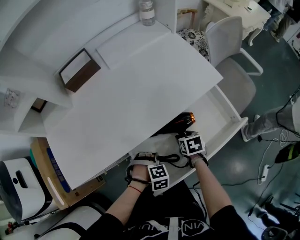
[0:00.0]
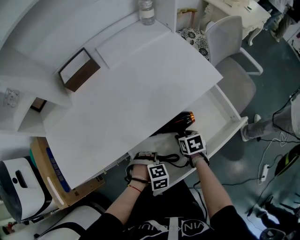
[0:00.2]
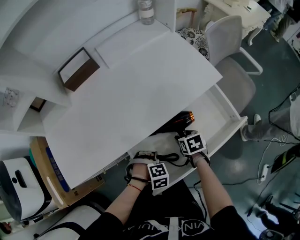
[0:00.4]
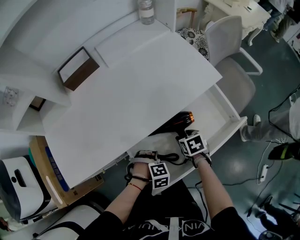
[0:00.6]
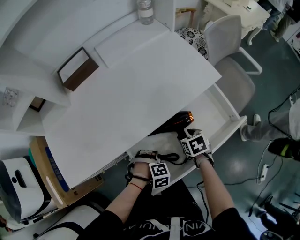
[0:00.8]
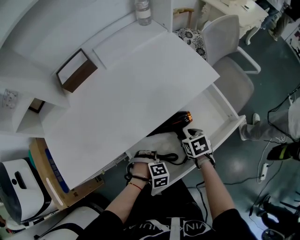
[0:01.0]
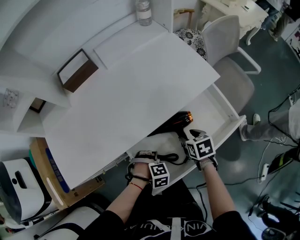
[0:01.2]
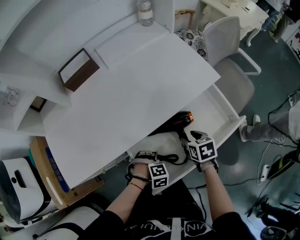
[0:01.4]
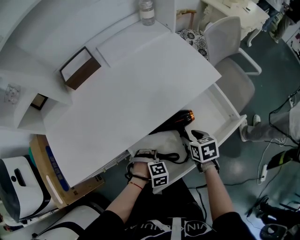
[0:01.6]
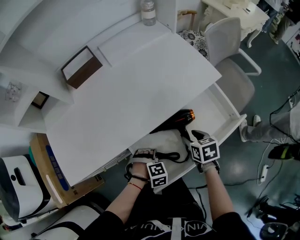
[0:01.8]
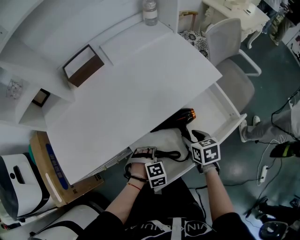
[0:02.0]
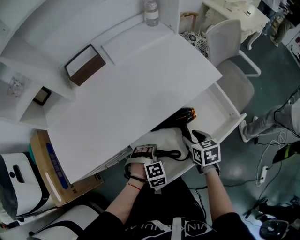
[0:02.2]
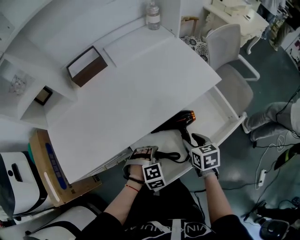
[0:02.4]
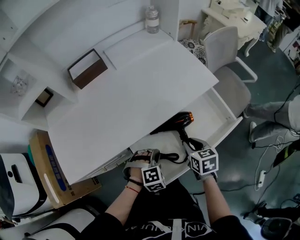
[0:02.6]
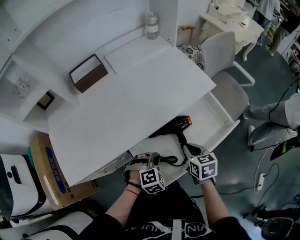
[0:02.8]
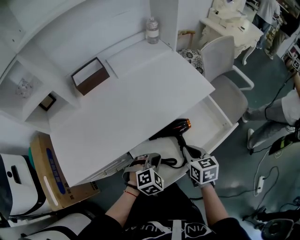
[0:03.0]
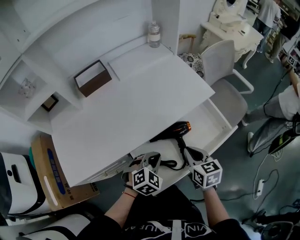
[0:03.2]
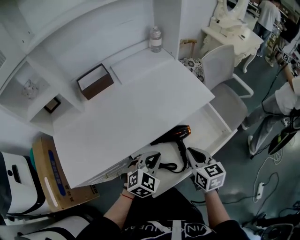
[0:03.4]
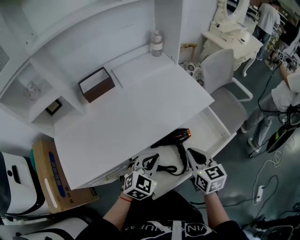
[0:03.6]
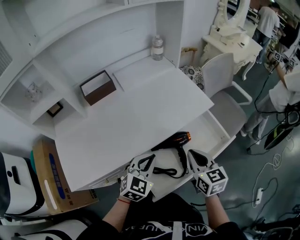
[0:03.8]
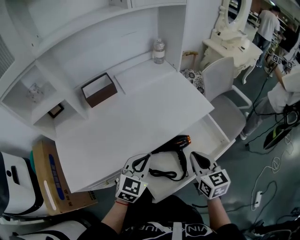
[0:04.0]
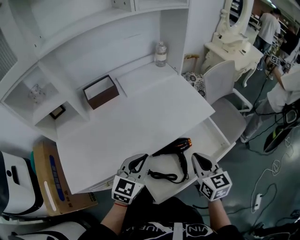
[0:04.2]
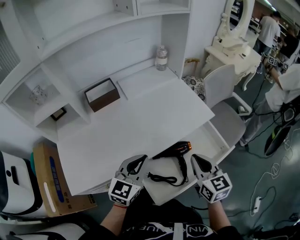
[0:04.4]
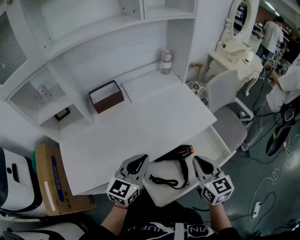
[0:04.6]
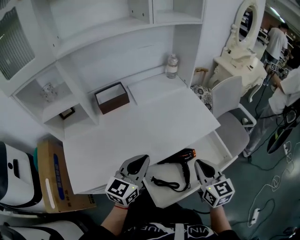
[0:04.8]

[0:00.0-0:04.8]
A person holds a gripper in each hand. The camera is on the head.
0:00.0 to 0:01.6: The right gripper is displaced upward by roughly 5 cm.
0:01.6 to 0:03.2: Both grippers travel together upward, approximately 15 cm. The right gripper turns by about 20 degrees, and closes its fingers; the left gripper tips its fingers upward by about 40 degrees, and closes its fingers.
0:03.2 to 0:04.8: The right gripper shifts some 15 cm upward; the left gripper heads upward and to the left, covering some 20 cm, and angles its fingers upward, by some 40 degrees.

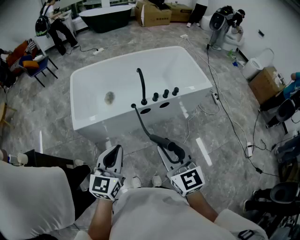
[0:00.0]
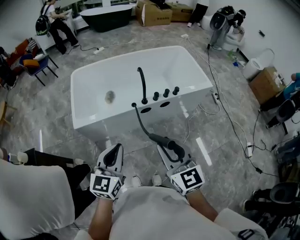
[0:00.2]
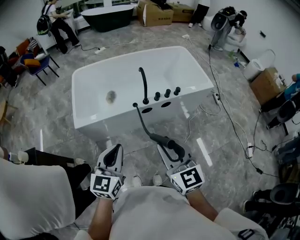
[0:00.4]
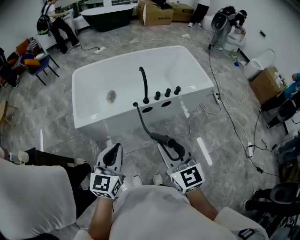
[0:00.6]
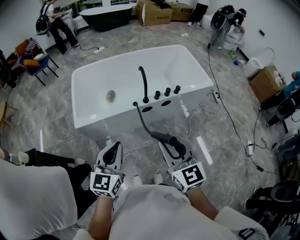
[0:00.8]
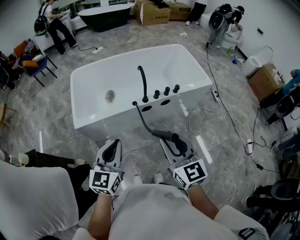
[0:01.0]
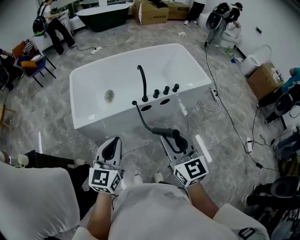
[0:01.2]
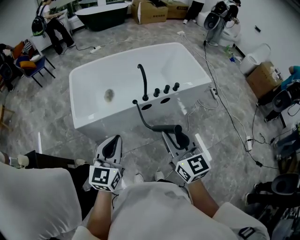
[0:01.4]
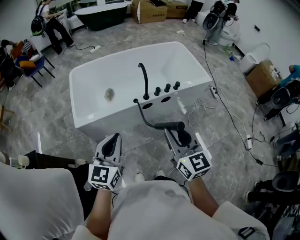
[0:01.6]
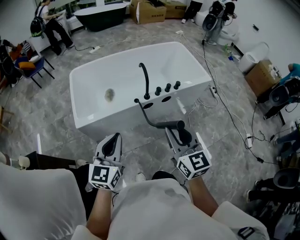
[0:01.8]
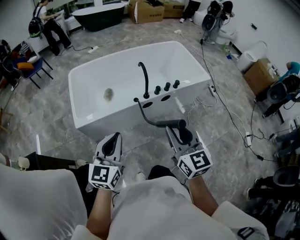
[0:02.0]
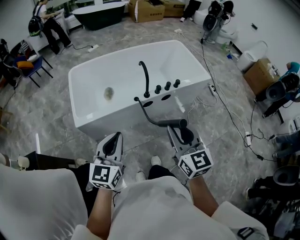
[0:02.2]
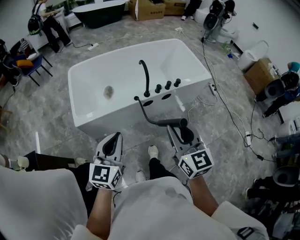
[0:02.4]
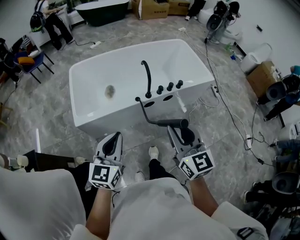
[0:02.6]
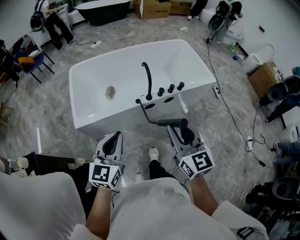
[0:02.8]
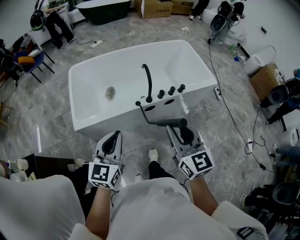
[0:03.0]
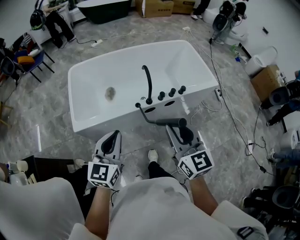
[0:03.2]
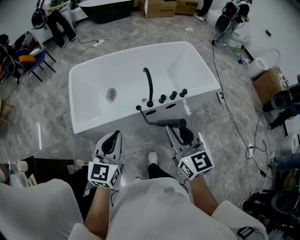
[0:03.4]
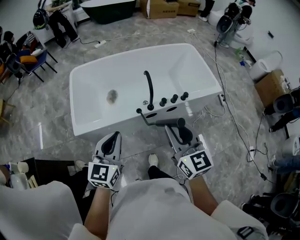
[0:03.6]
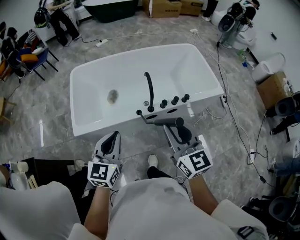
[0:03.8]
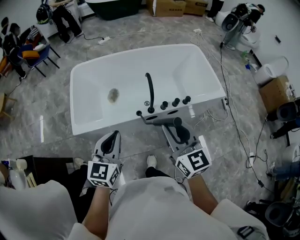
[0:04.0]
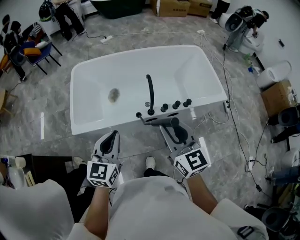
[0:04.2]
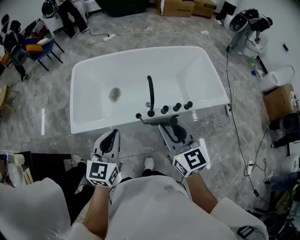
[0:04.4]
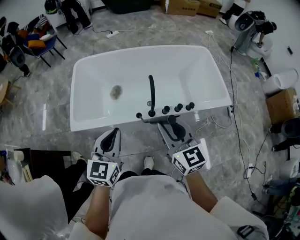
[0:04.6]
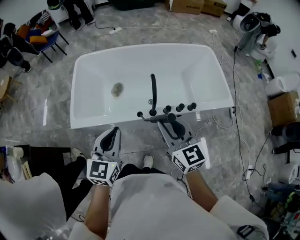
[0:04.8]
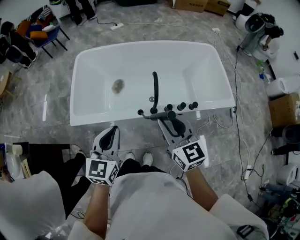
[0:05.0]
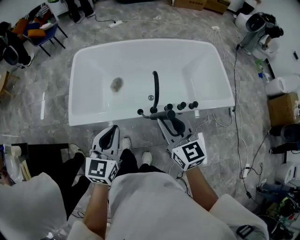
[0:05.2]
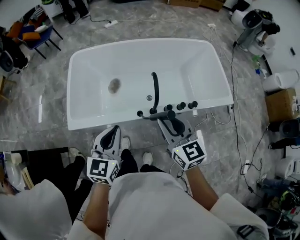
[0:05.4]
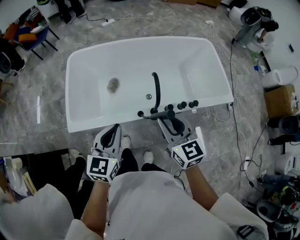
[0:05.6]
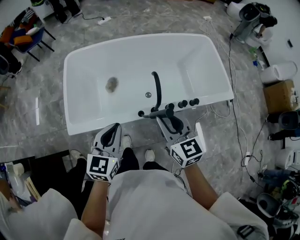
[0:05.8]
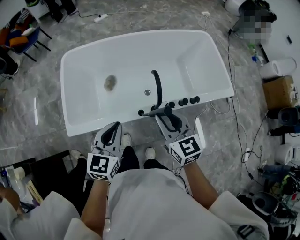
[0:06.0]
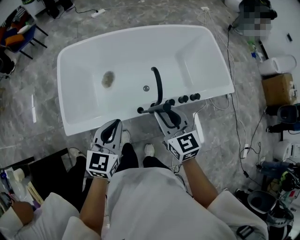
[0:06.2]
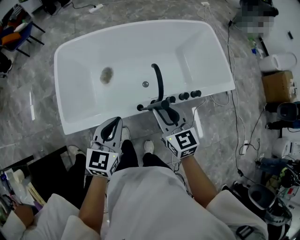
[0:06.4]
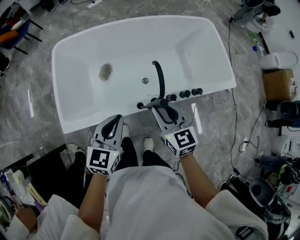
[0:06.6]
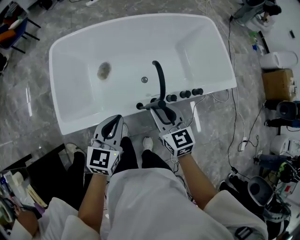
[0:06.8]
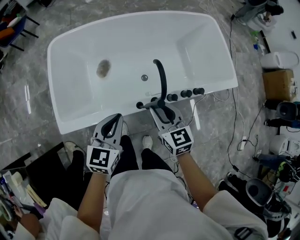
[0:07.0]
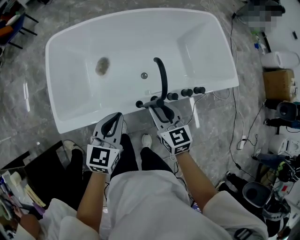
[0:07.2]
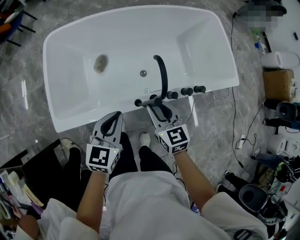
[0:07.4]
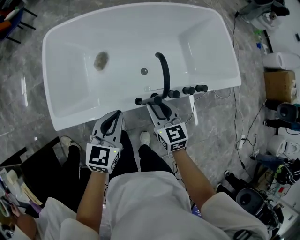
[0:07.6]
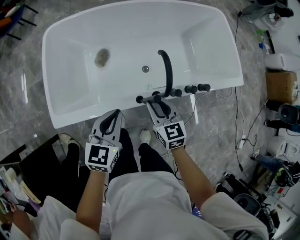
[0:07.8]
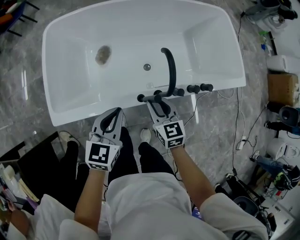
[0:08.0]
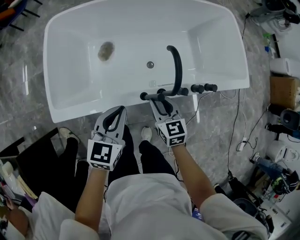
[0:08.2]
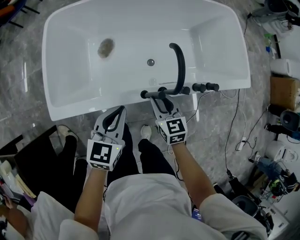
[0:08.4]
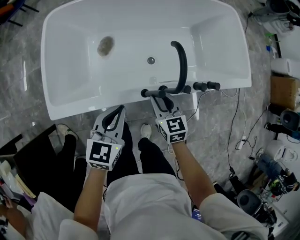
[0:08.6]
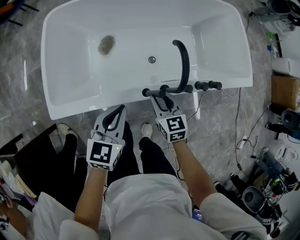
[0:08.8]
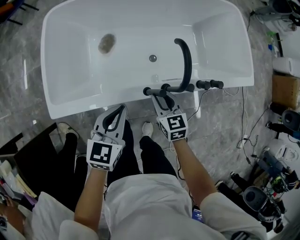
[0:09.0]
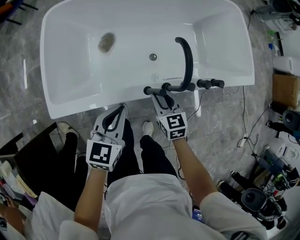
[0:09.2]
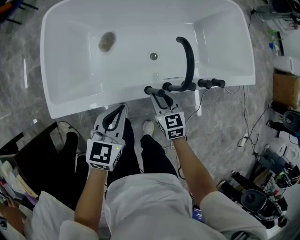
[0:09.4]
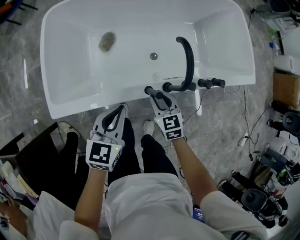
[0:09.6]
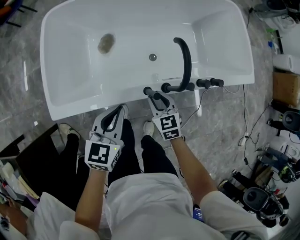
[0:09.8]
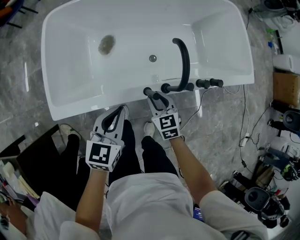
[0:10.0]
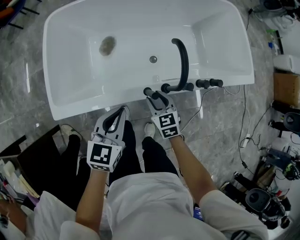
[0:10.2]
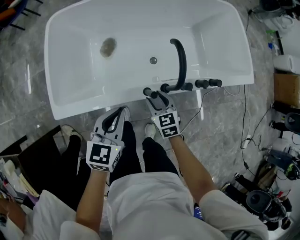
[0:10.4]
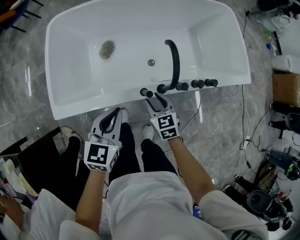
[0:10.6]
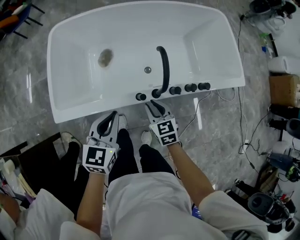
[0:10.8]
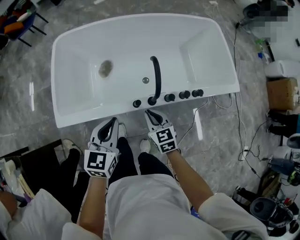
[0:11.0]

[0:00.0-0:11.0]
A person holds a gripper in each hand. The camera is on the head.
0:00.0 to 0:01.6: The left gripper ends up roughly 5 cm from where it was.
0:01.6 to 0:03.2: Both grippers move forward, about 10 cm.
0:03.2 to 0:04.8: The right gripper travels forward by approximately 15 cm. Meanwhile the left gripper goes about 15 cm forward and to the right.
0:04.8 to 0:06.2: The two grippers go roughly 15 cm forward and downward.
0:06.2 to 0:07.8: The left gripper moves downward, approximately 10 cm. Meanwhile the right gripper moves downward, roughly 20 cm.
0:07.8 to 0:09.4: The left gripper moves downward, about 5 cm. Meanwhile the right gripper heads downward, covering some 10 cm.
0:09.4 to 0:11.0: The two grippers go about 10 cm upward.

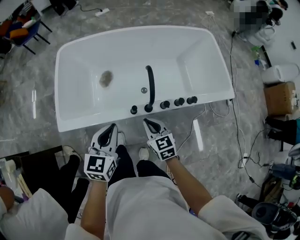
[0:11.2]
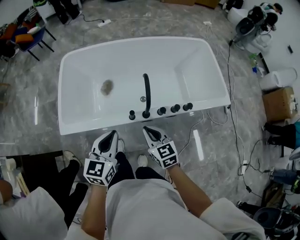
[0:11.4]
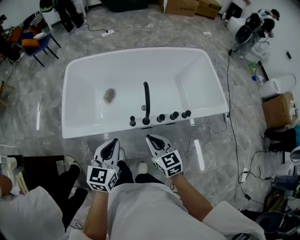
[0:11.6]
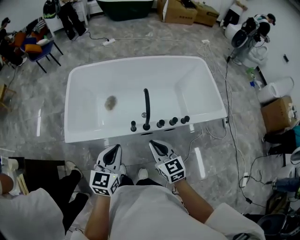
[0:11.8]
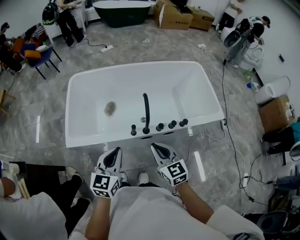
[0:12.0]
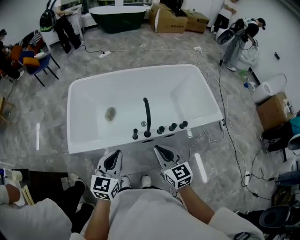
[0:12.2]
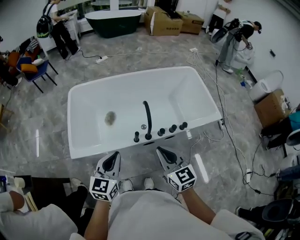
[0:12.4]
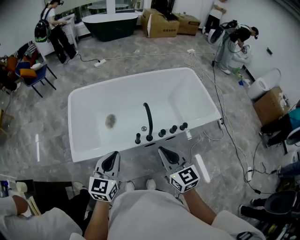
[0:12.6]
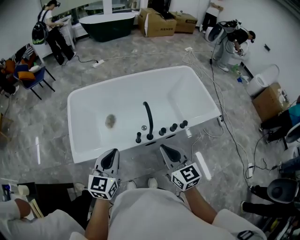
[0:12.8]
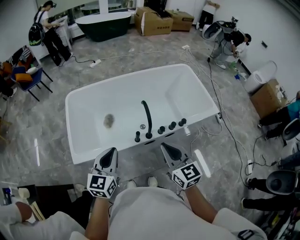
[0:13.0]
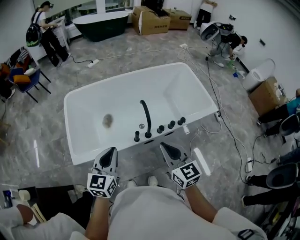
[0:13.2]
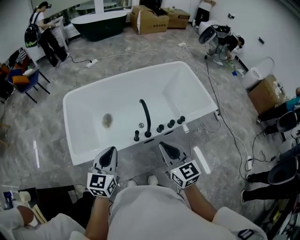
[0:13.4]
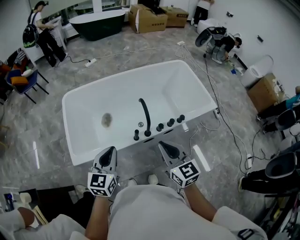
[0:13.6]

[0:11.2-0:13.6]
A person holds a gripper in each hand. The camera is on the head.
0:11.2 to 0:12.4: The left gripper travels upward and backward by roughly 10 cm, while the right gripper moves upward and backward, some 25 cm.
0:12.4 to 0:13.6: There are only small adjustments of the grippers.

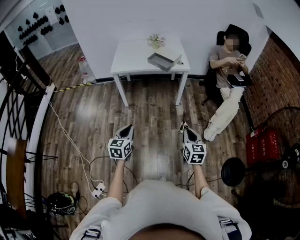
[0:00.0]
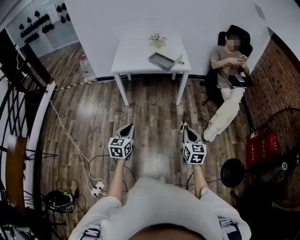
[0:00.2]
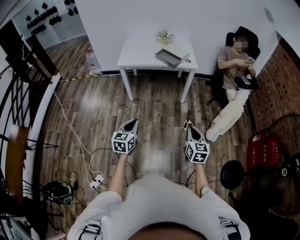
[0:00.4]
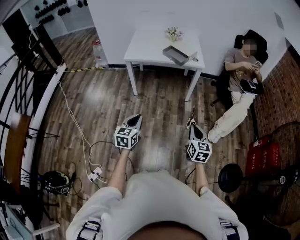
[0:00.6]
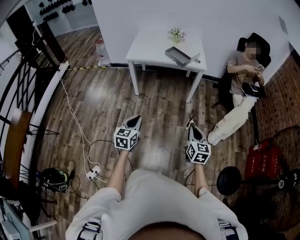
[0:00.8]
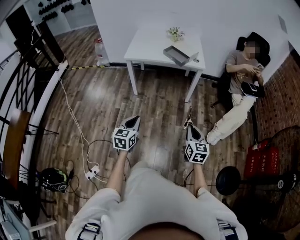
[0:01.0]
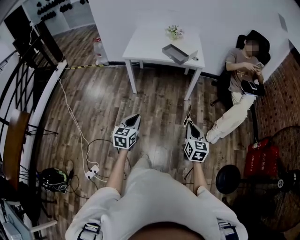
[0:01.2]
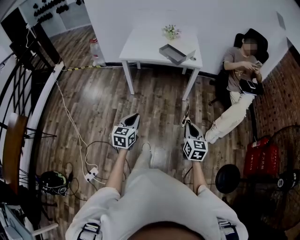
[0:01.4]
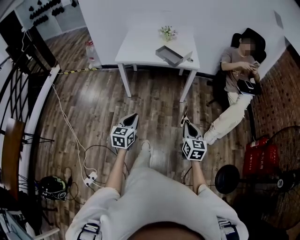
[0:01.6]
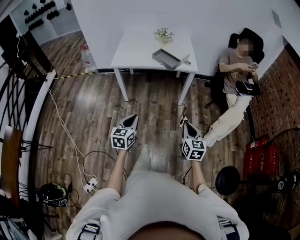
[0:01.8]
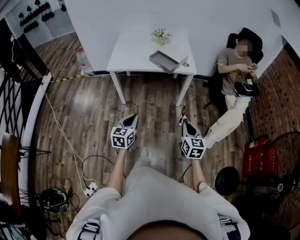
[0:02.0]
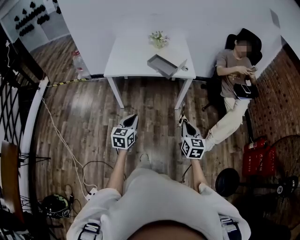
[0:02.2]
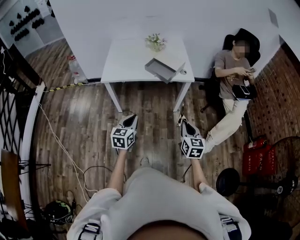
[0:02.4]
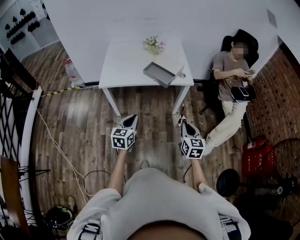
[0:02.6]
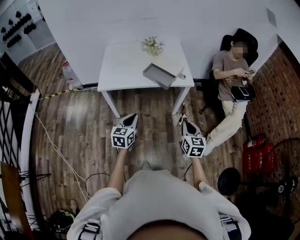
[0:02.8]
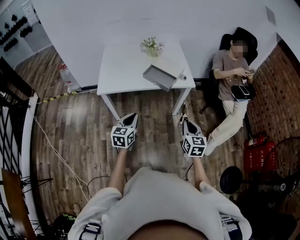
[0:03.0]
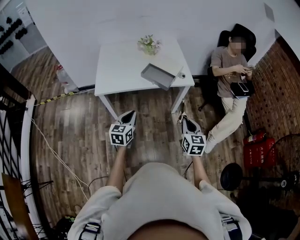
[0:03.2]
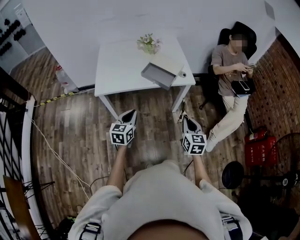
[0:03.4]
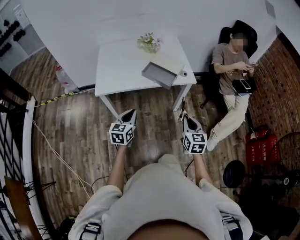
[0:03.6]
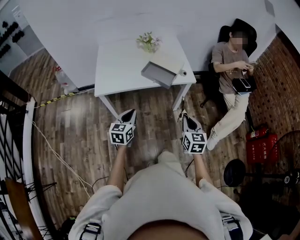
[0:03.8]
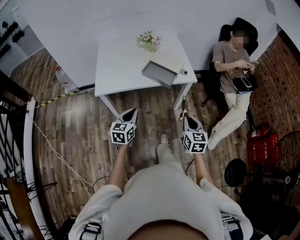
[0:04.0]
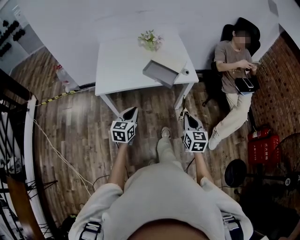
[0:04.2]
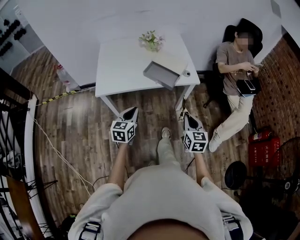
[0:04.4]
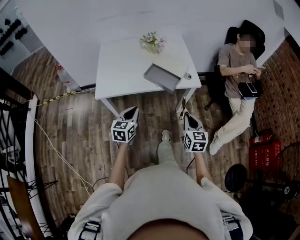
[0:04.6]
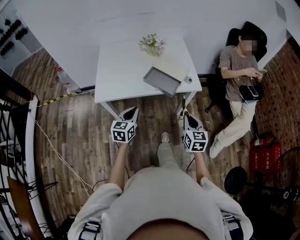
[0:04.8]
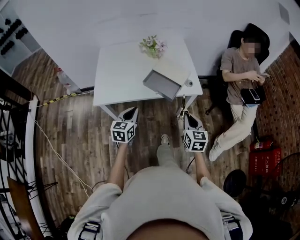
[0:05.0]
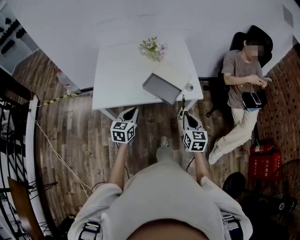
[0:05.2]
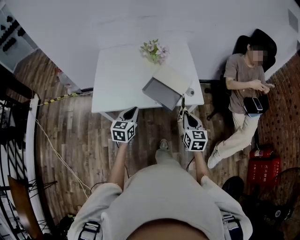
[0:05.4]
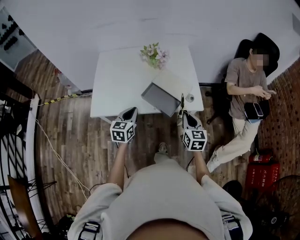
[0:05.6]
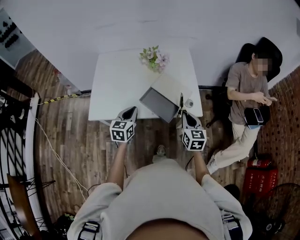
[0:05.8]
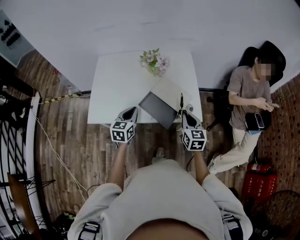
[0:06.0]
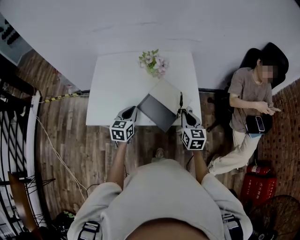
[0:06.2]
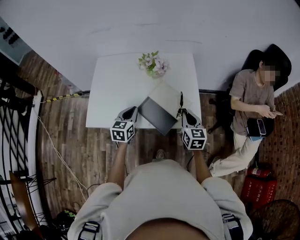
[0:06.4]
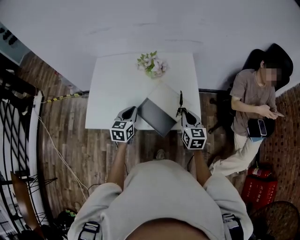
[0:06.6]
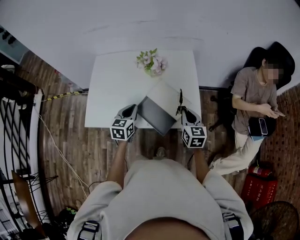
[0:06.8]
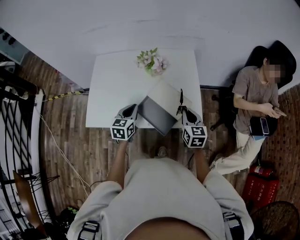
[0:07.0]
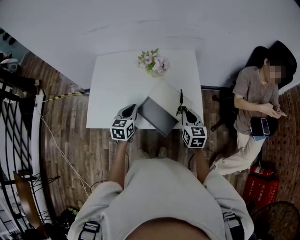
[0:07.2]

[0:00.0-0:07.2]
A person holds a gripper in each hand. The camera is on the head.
0:00.0 to 0:01.4: The left gripper ends up about 5 cm from where it was.
0:01.4 to 0:02.8: Both grippers move forward, about 30 cm.
0:02.8 to 0:04.4: The two grippers go roughly 10 cm forward.
0:04.4 to 0:05.8: Both grippers travel together forward, some 25 cm.
0:05.8 to 0:07.2: Both grippers travel together forward, approximately 10 cm.
